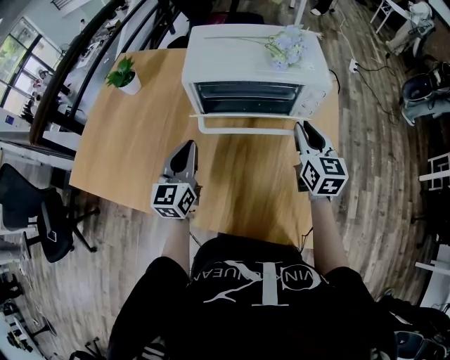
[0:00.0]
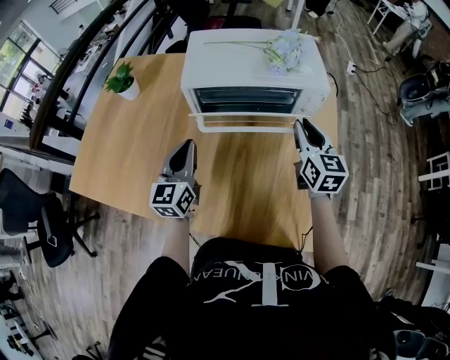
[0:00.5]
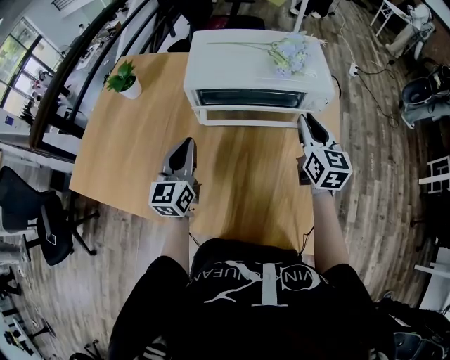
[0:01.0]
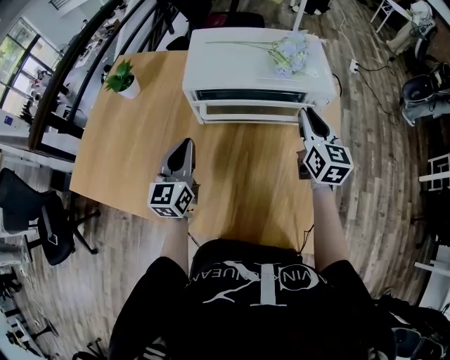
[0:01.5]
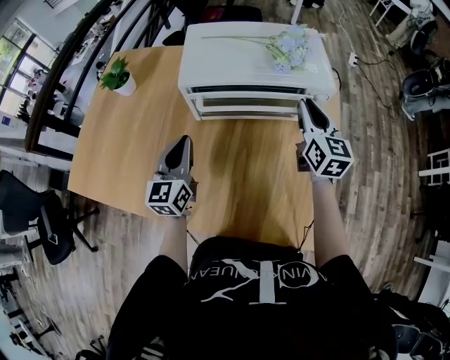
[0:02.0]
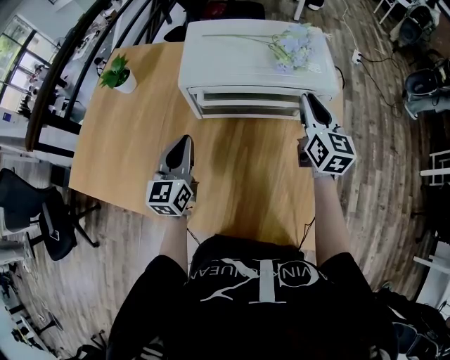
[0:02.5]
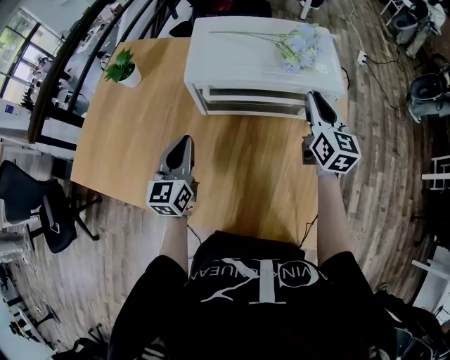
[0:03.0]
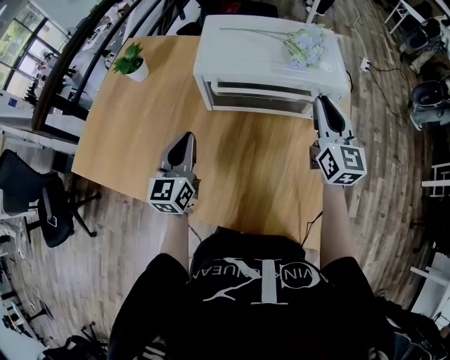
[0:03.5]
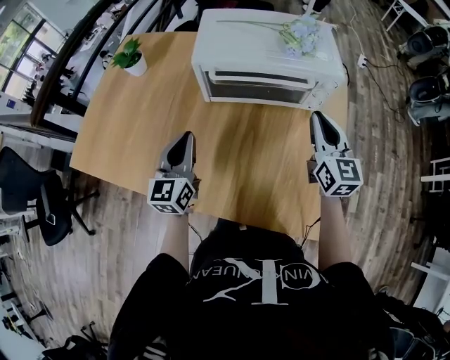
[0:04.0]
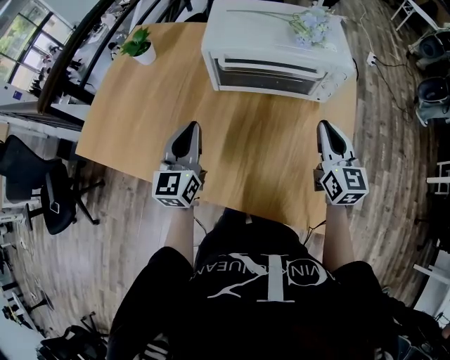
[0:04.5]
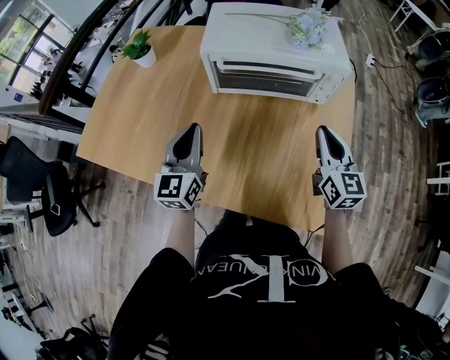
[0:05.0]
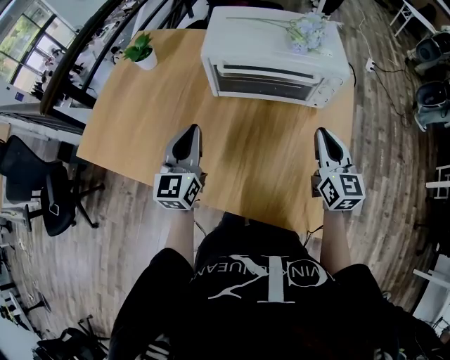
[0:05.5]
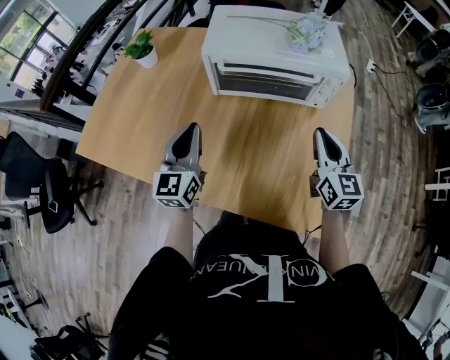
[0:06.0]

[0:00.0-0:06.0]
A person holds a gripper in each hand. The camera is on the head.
0:00.0 to 0:02.0: The right gripper goes some 5 cm forward.
0:02.0 to 0:04.0: Both grippers travel together backward, approximately 5 cm.
0:04.0 to 0:06.0: The right gripper shifts roughly 5 cm backward.

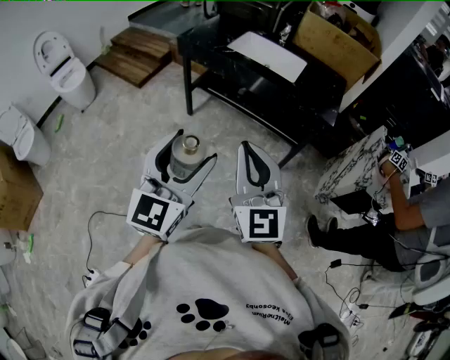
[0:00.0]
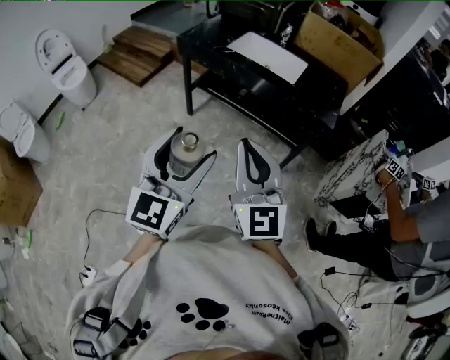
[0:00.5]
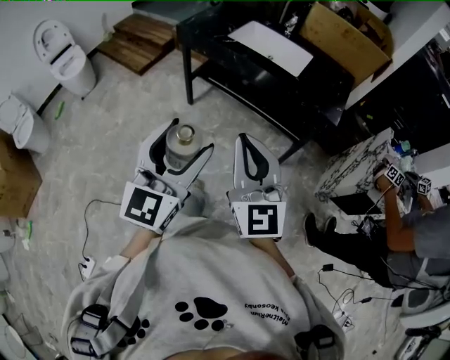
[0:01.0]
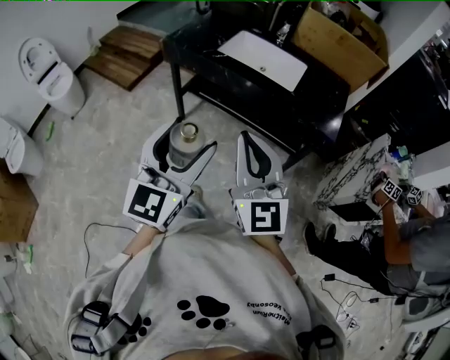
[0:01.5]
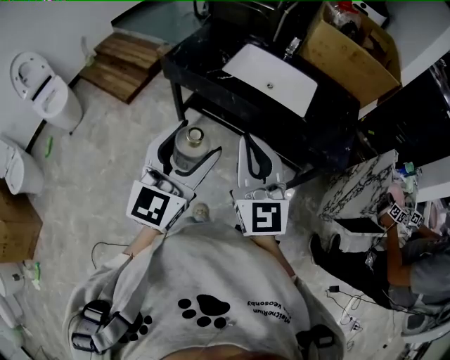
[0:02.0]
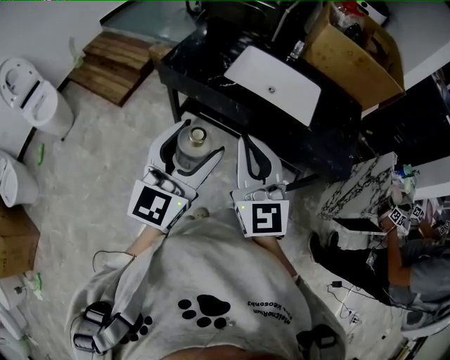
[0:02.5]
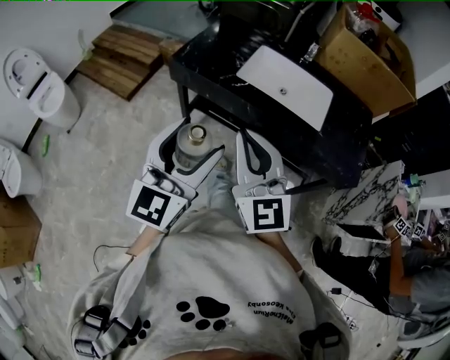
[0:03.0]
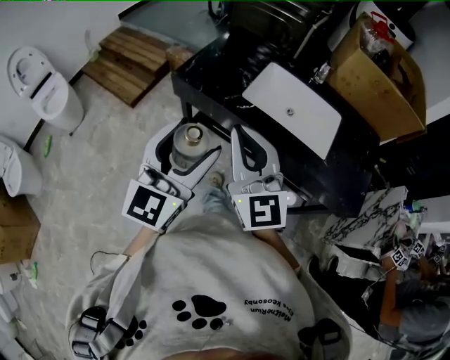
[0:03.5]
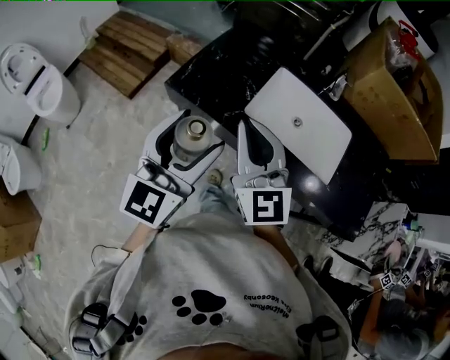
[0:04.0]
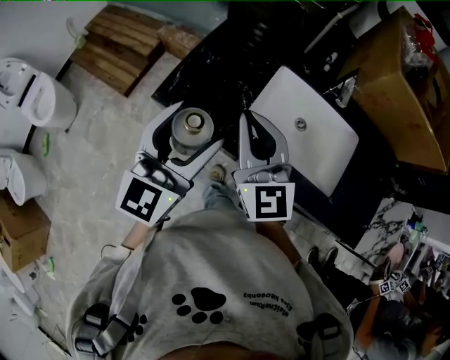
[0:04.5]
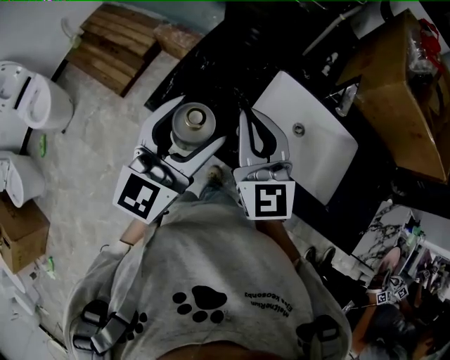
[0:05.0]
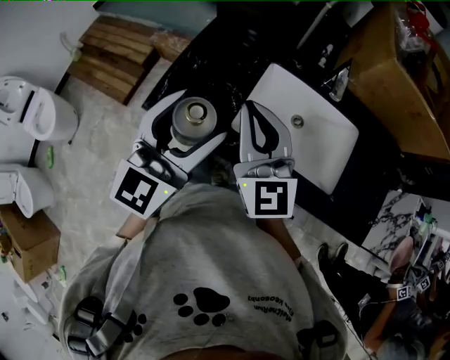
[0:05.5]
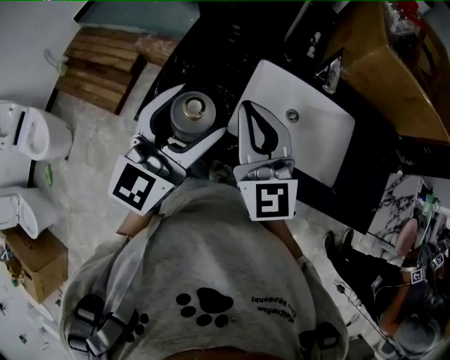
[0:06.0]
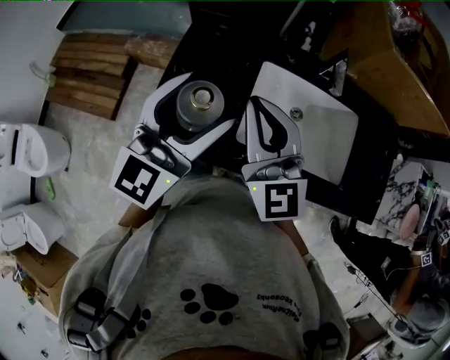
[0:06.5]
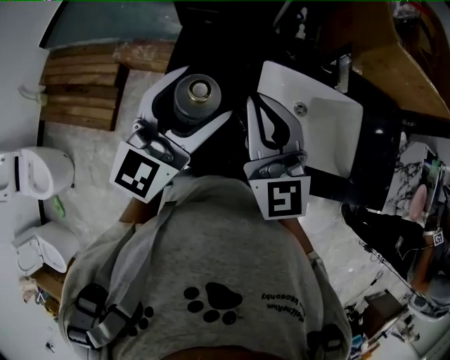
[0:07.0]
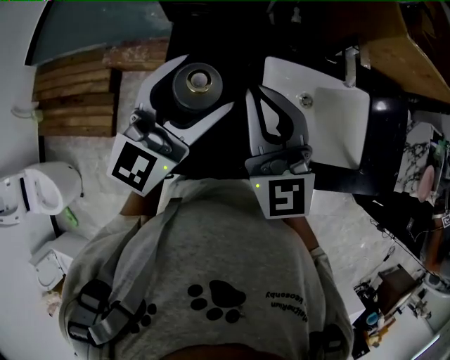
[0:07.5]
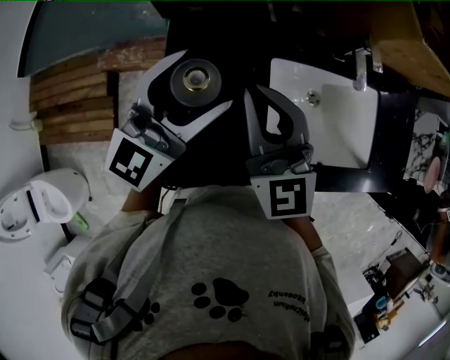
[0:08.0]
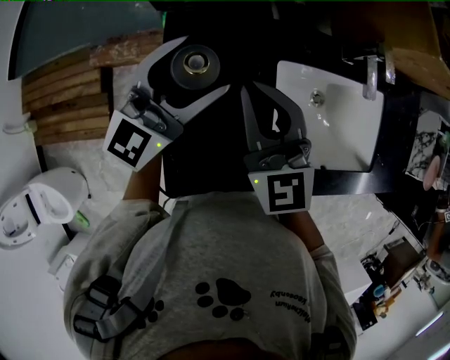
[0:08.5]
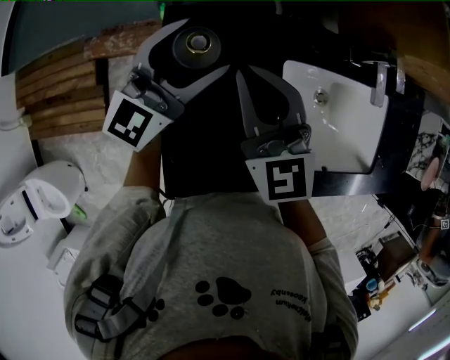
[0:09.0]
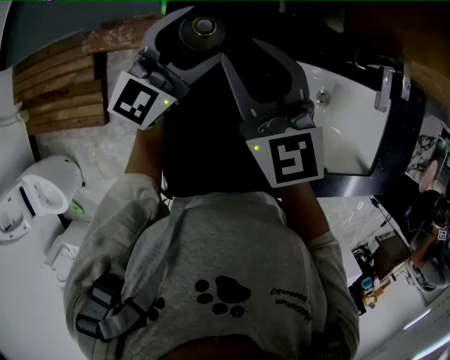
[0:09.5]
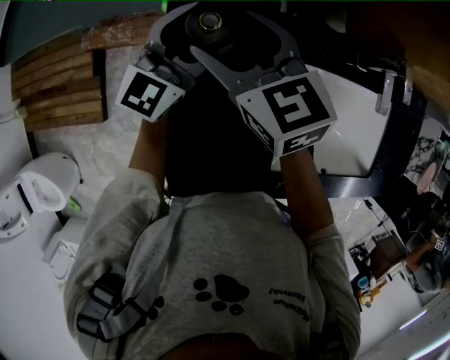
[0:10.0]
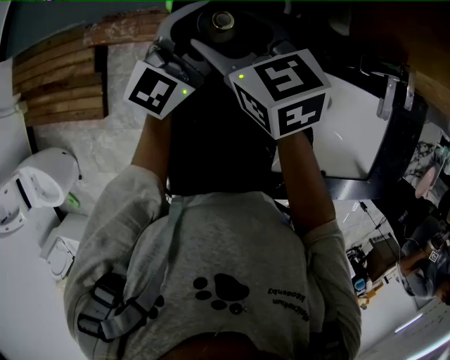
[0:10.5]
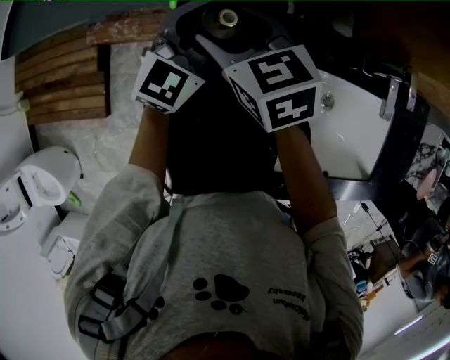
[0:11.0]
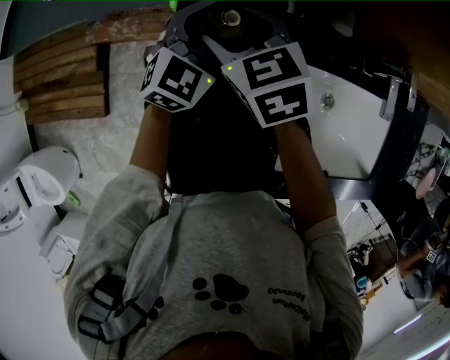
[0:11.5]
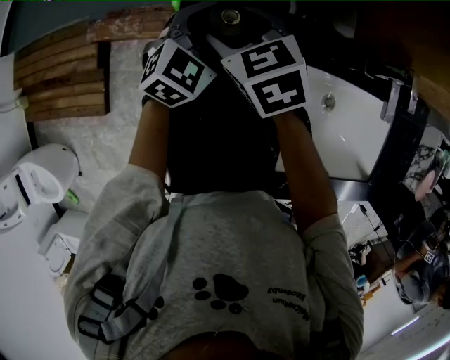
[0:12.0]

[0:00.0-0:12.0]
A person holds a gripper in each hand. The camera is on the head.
0:00.0 to 0:02.0: Both grippers move forward, roughly 30 cm.
0:02.0 to 0:04.0: The two grippers go some 30 cm forward.
0:04.0 to 0:06.0: Both grippers travel together forward, some 15 cm.
0:06.0 to 0:08.0: Both grippers travel together forward and to the left, approximately 20 cm. The left gripper turns by roughly 30 degrees.
0:08.0 to 0:10.0: The right gripper heads forward, downward and to the left, covering about 20 cm, swivels approximately 30 degrees, and opens. Meanwhile the left gripper travels forward and downward by approximately 20 cm.
0:10.0 to 0:12.0: The grippers both shift downward by about 10 cm. The left gripper points its fingers roughly 30 degrees further downward.

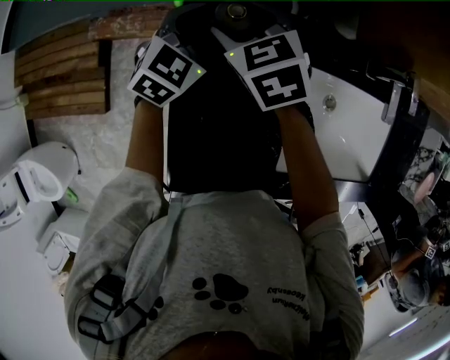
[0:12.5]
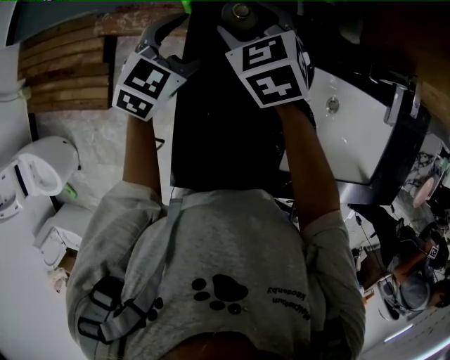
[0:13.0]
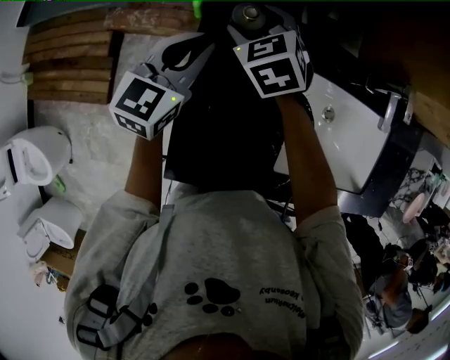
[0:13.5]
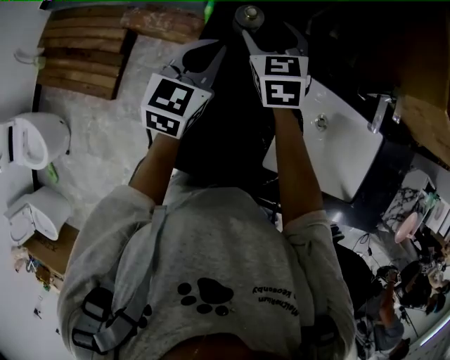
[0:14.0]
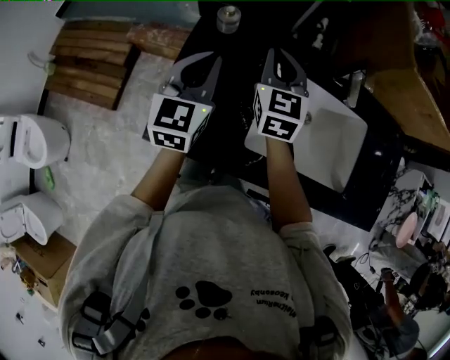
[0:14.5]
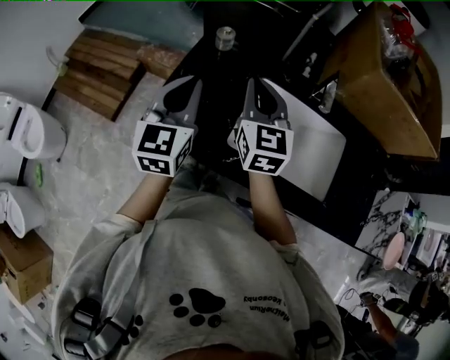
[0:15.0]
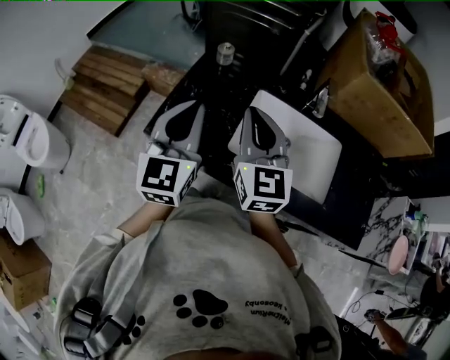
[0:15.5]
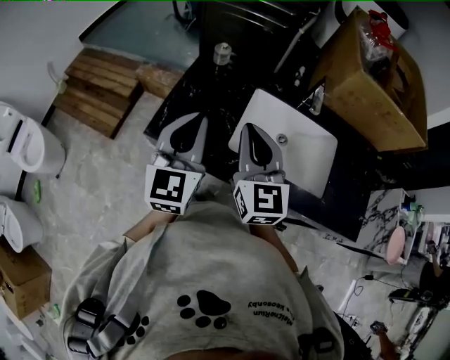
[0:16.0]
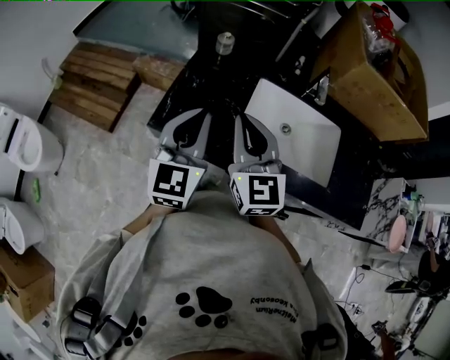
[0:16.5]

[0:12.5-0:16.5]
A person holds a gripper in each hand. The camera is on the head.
0:12.5 to 0:14.5: The right gripper goes some 20 cm to the right, backward and upward, turns by approximately 30 degrees, and closes; the left gripper shifts roughly 25 cm backward and upward, turns by some 40 degrees, and closes.
0:14.5 to 0:16.5: The grippers both shift backward by some 25 cm.

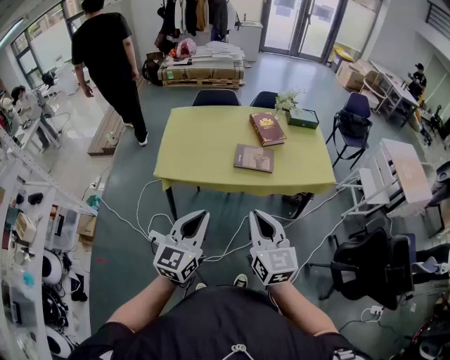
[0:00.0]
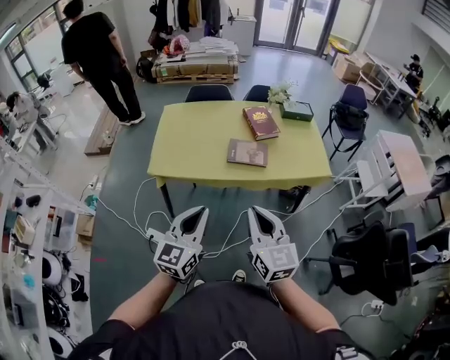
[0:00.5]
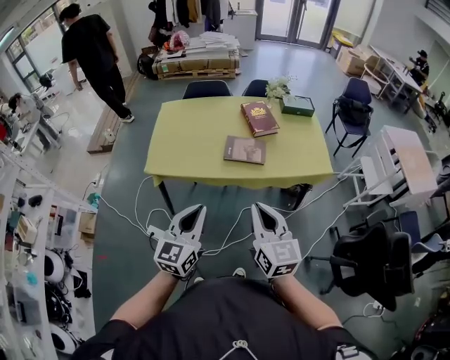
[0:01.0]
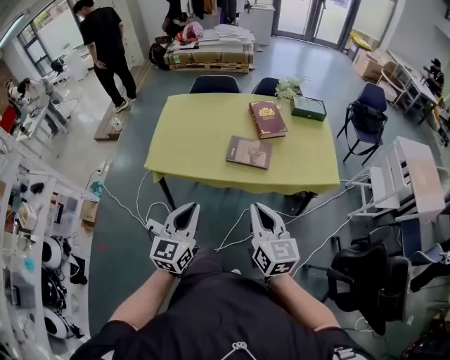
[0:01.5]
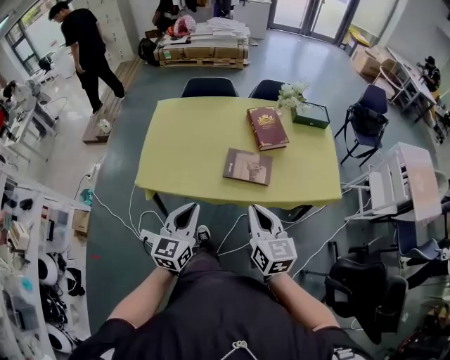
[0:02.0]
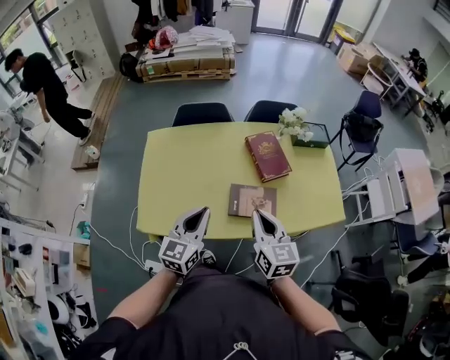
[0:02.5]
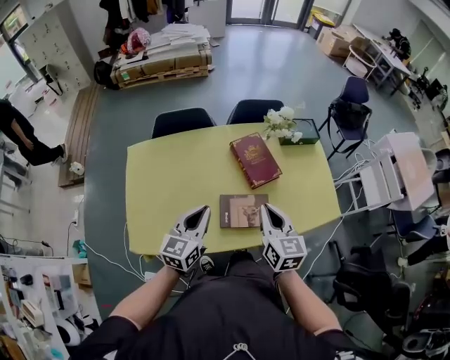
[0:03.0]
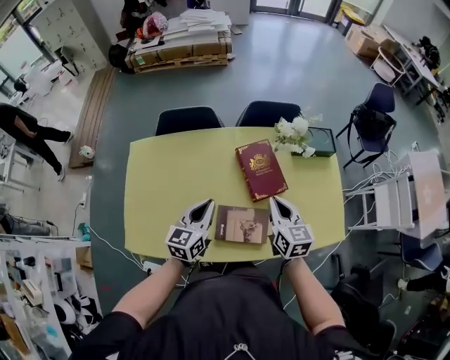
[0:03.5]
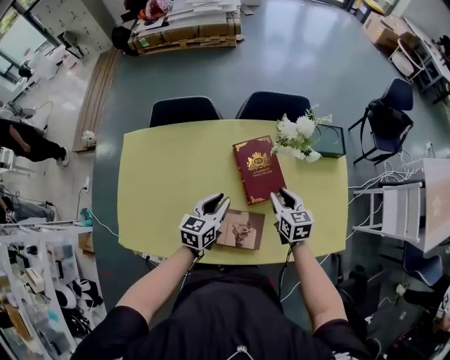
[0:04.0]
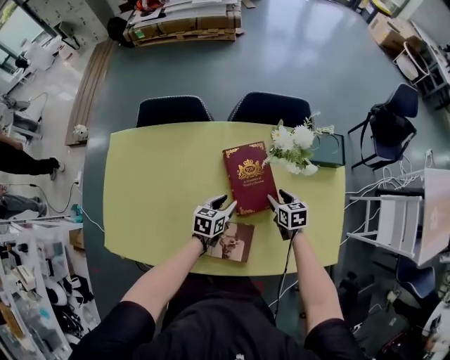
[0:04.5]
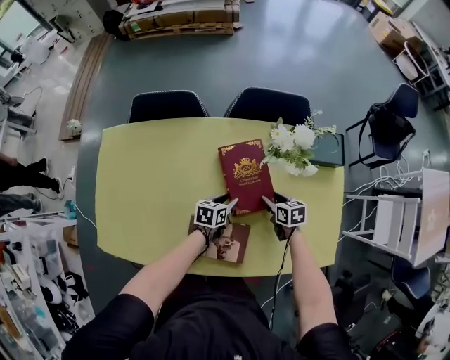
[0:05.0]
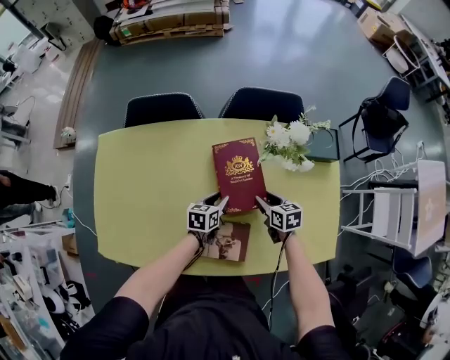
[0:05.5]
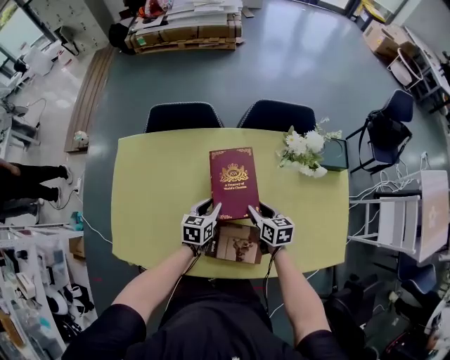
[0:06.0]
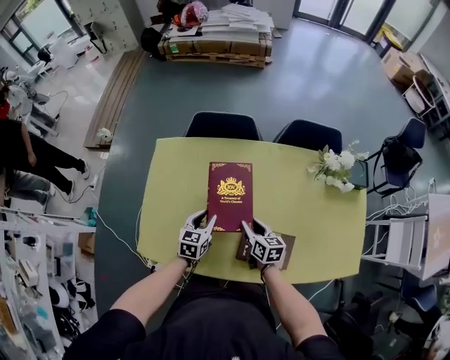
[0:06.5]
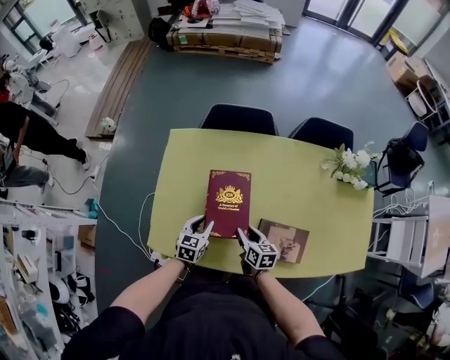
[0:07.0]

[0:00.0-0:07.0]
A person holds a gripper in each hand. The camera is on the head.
0:00.0 to 0:02.0: The two grippers go roughly 25 cm forward and downward.
0:02.0 to 0:03.5: Both grippers travel together forward, about 40 cm.
0:03.5 to 0:05.0: The right gripper goes some 30 cm downward and forward, swivels about 40 degrees, and opens. Meanwhile the left gripper goes some 35 cm downward and to the right, swivels some 40 degrees, and opens its fingers.
0:05.0 to 0:07.0: Both grippers move to the left, some 40 cm. The left gripper changes its angle by roughly 30 degrees.
